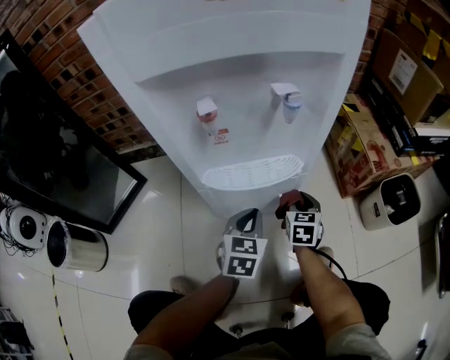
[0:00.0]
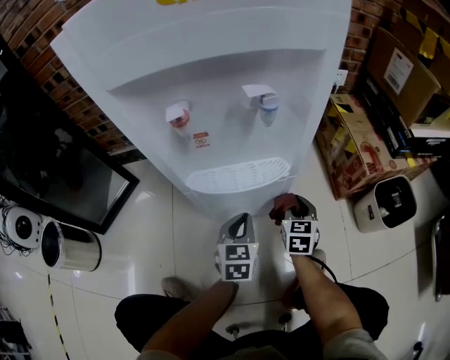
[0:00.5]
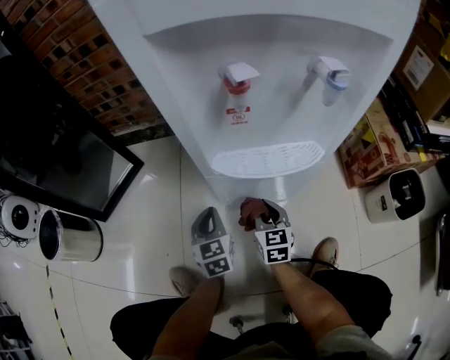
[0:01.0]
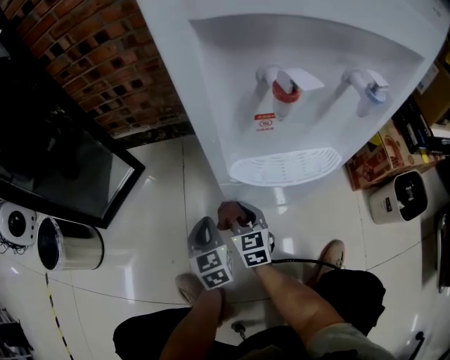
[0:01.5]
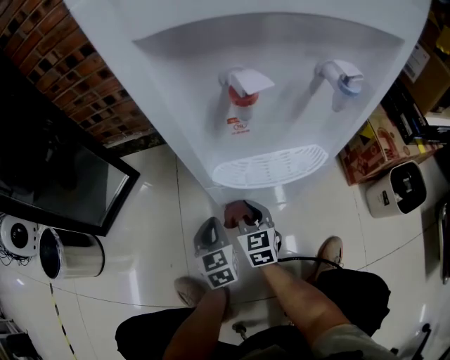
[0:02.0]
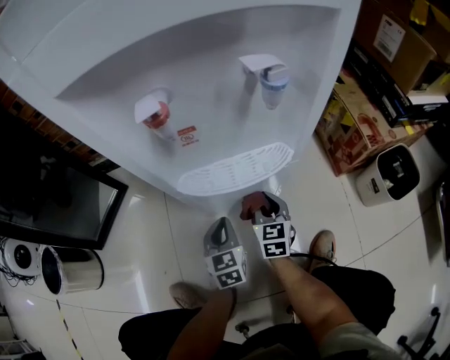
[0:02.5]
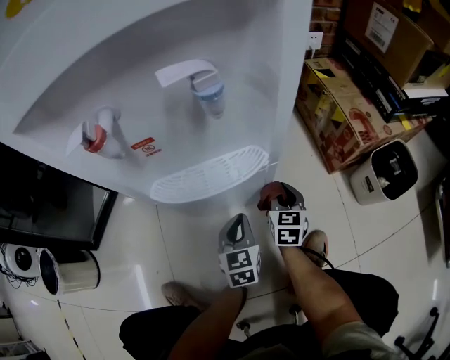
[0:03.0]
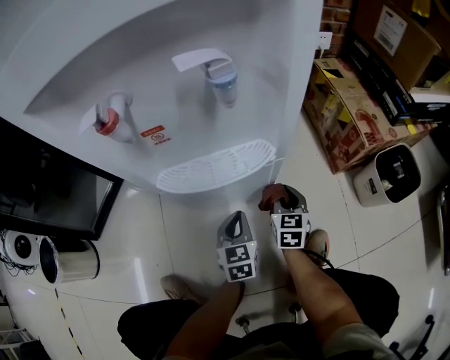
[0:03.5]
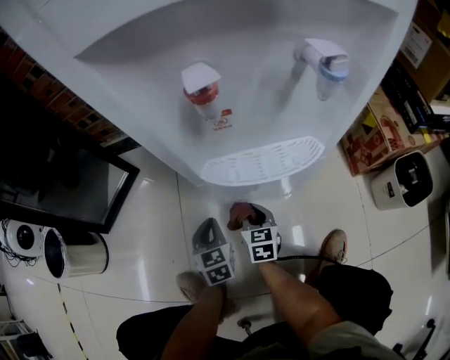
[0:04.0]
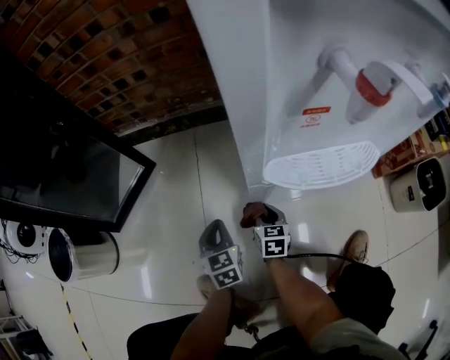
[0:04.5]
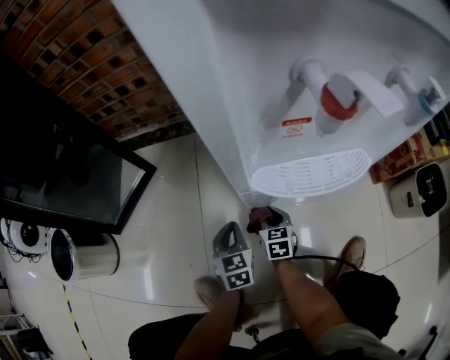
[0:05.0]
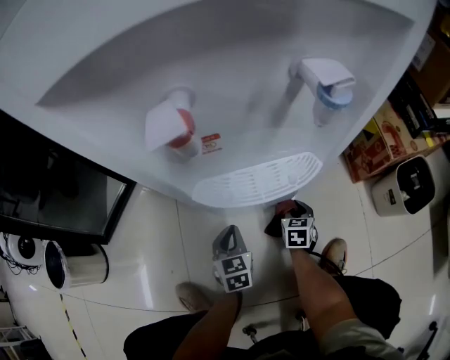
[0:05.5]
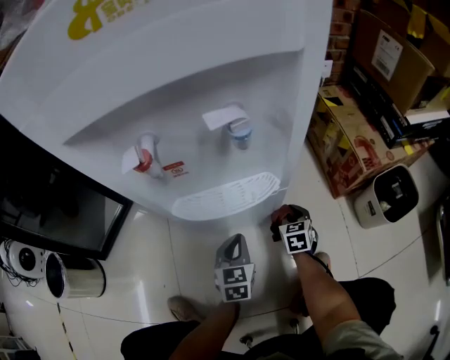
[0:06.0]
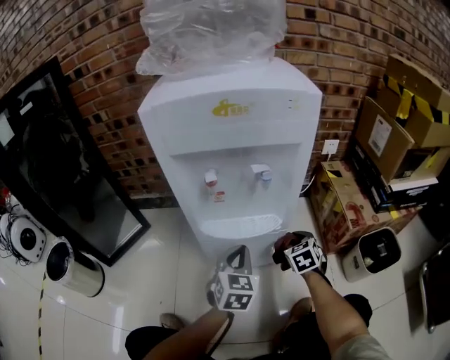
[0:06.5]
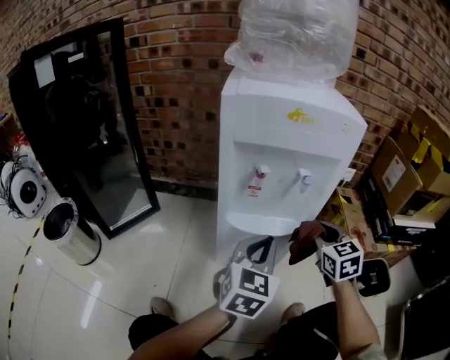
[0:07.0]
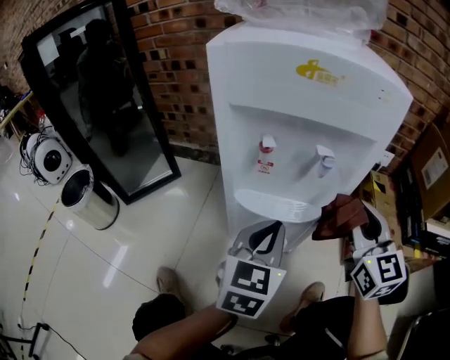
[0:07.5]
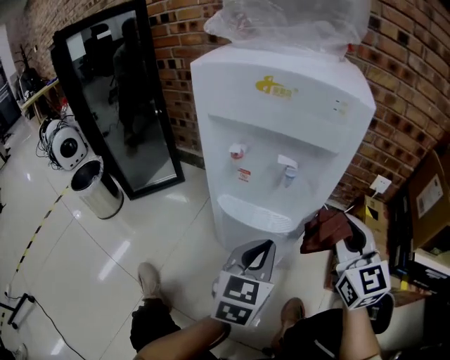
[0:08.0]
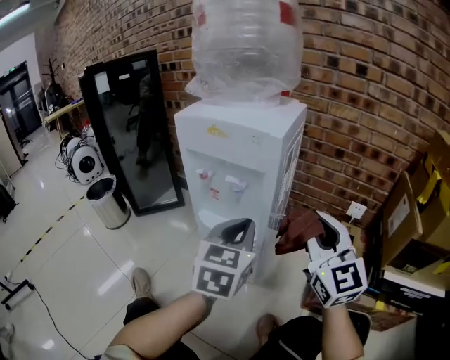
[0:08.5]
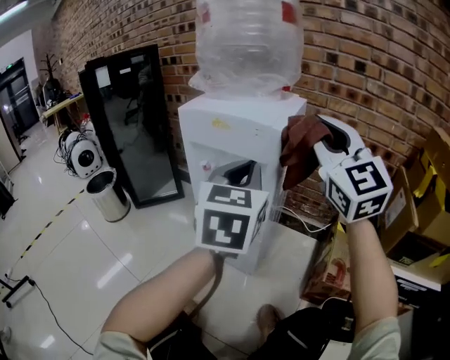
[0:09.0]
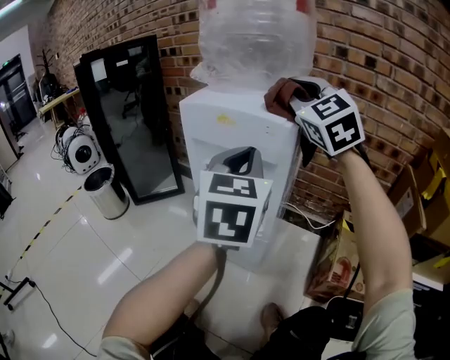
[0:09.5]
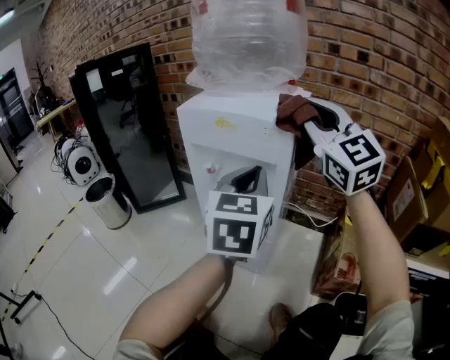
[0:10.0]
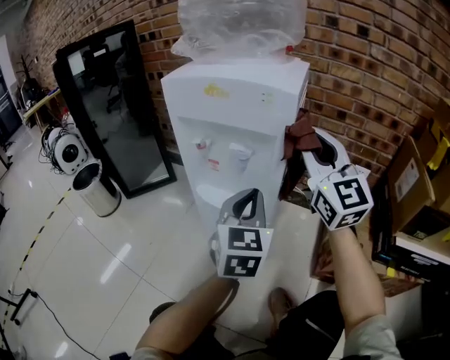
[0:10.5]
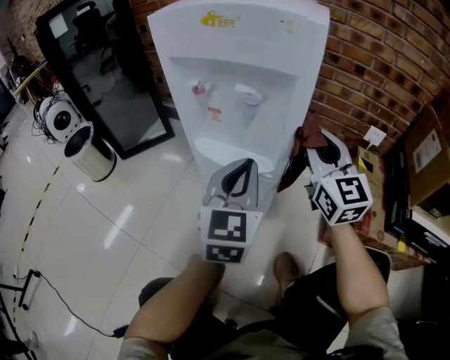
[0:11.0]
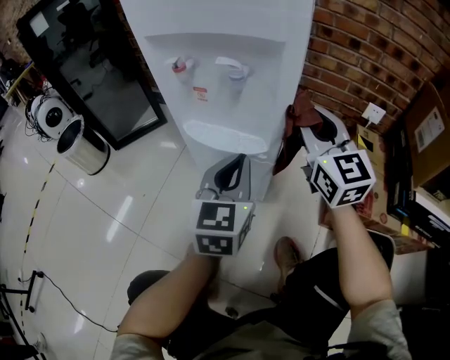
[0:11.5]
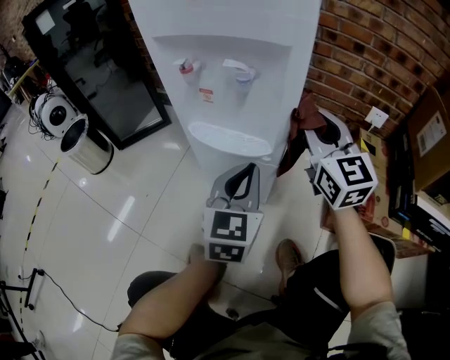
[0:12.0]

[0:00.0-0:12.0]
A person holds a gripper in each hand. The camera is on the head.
0:00.0 to 0:02.0: The left gripper moves approximately 20 cm, and changes its angle by approximately 30 degrees; the right gripper shifts by roughly 20 cm, and changes its angle by some 20 degrees.
0:02.0 to 0:04.0: The right gripper moves downward, some 5 cm, and reaches about 25 cm to the right, then returns. Meanwhile the left gripper reaches about 20 cm to the right, then returns.
0:04.0 to 0:06.0: The two grippers go about 20 cm to the right.
0:06.0 to 0:08.0: The left gripper moves upward, some 25 cm; the right gripper moves upward, some 40 cm, and tips its fingers upward by some 40 degrees.
0:08.0 to 0:10.0: Both grippers move upward, about 25 cm. The right gripper rotates about 30 degrees.
0:10.0 to 0:12.0: Both grippers travel together downward, about 25 cm. The right gripper rotates roughly 20 degrees.

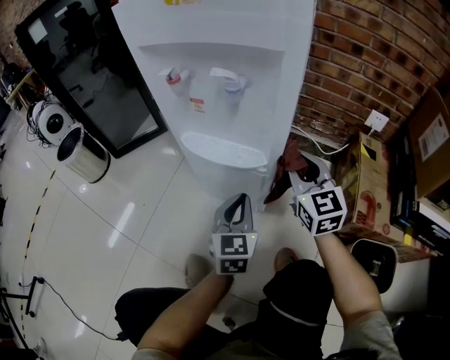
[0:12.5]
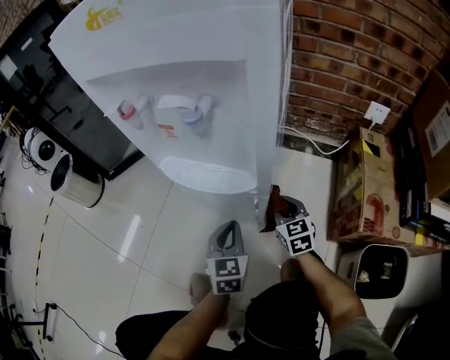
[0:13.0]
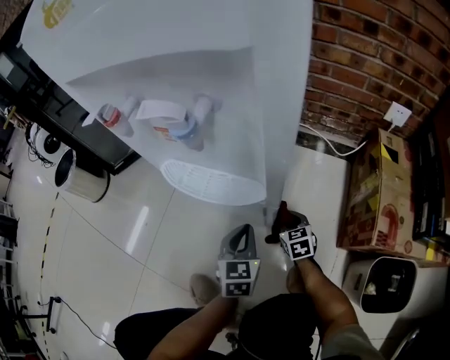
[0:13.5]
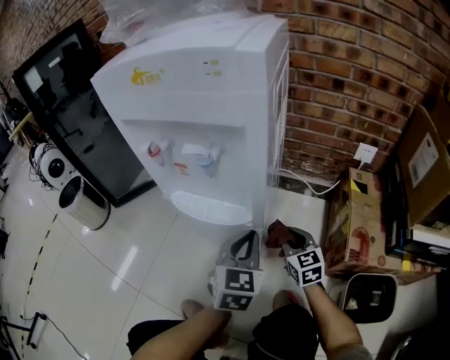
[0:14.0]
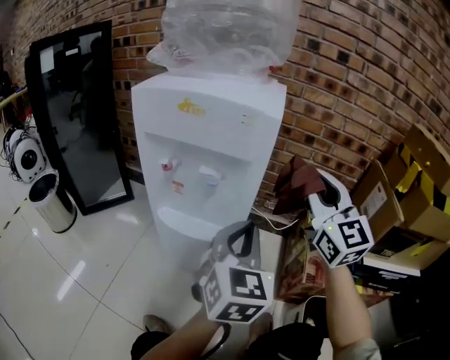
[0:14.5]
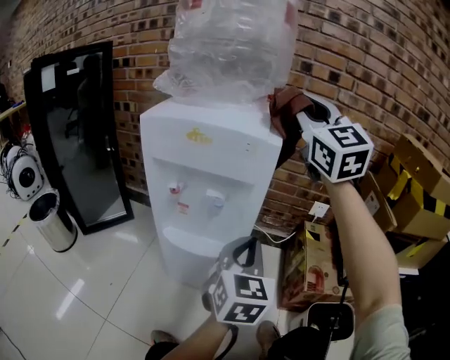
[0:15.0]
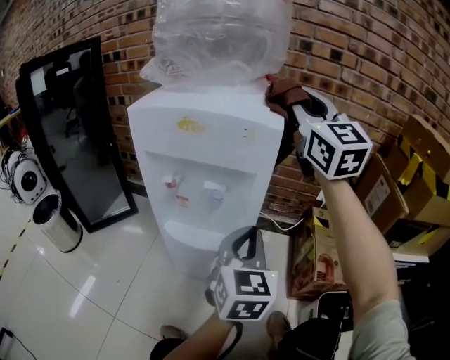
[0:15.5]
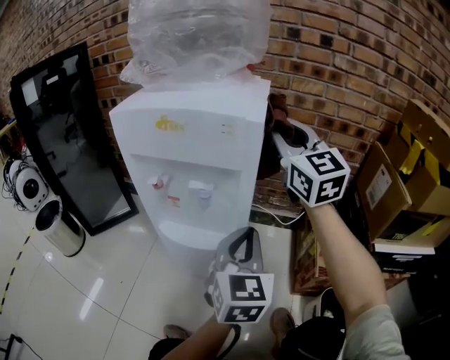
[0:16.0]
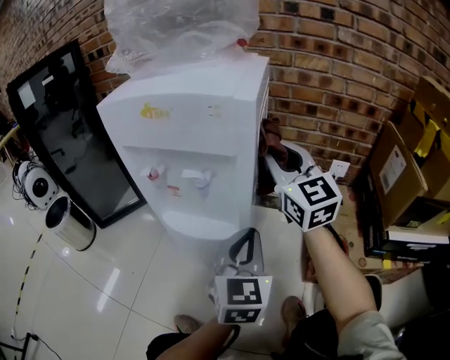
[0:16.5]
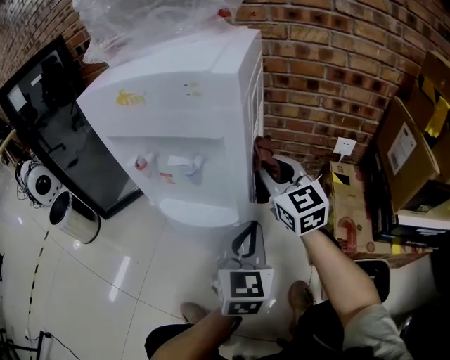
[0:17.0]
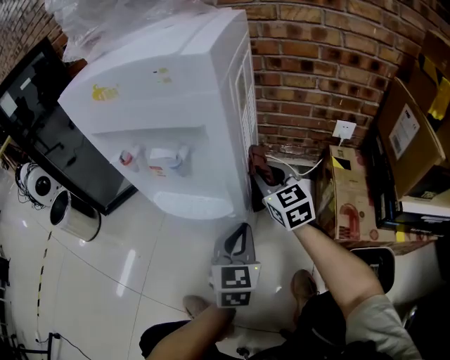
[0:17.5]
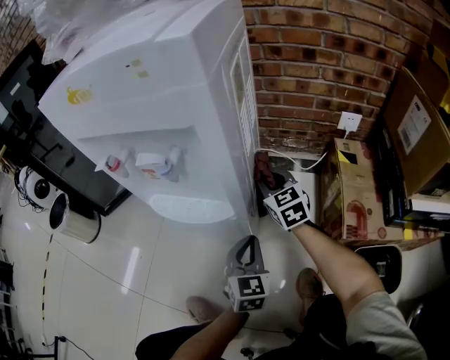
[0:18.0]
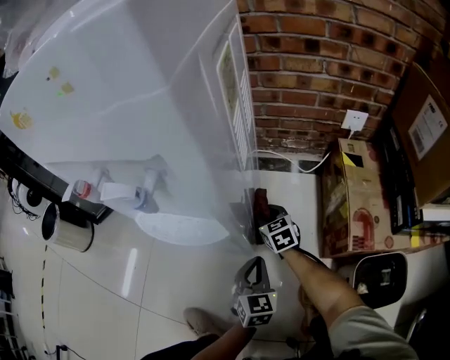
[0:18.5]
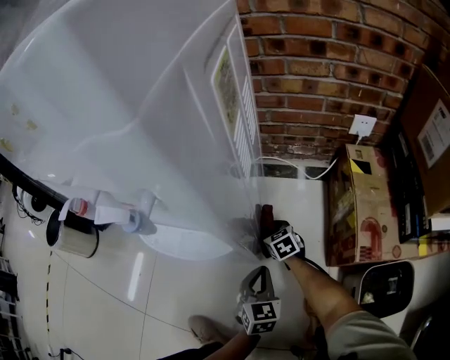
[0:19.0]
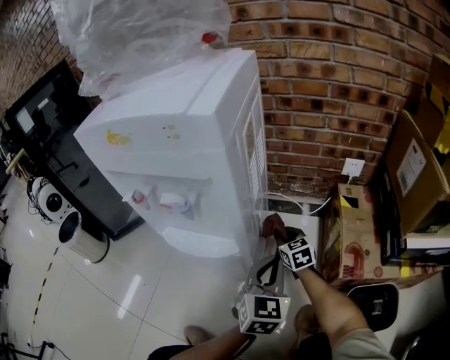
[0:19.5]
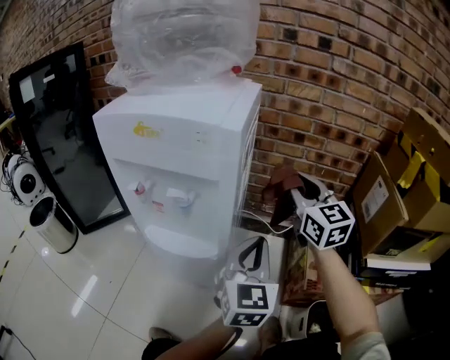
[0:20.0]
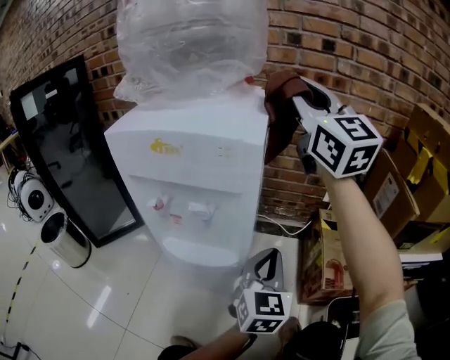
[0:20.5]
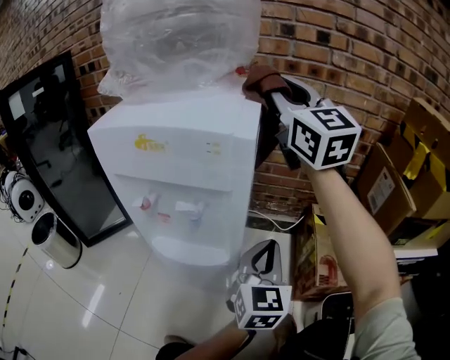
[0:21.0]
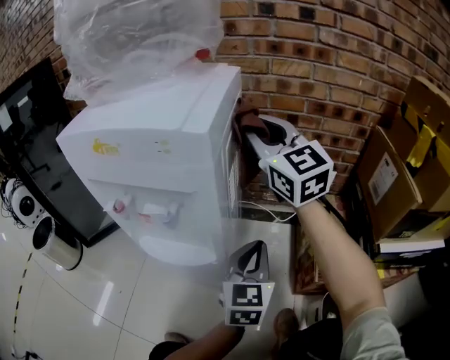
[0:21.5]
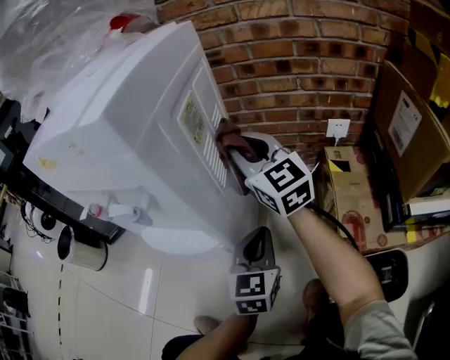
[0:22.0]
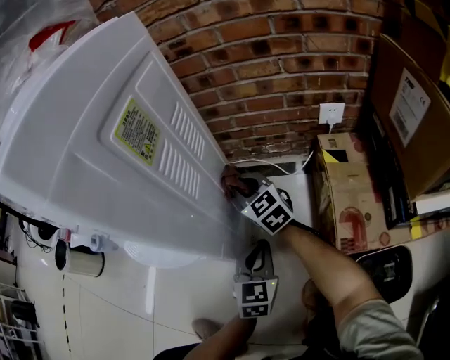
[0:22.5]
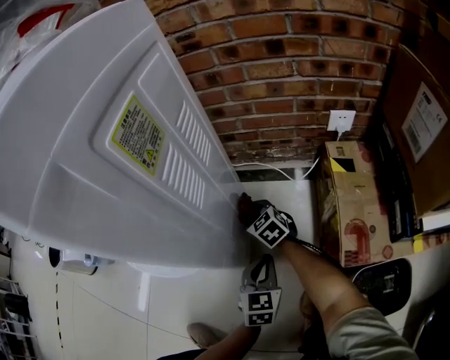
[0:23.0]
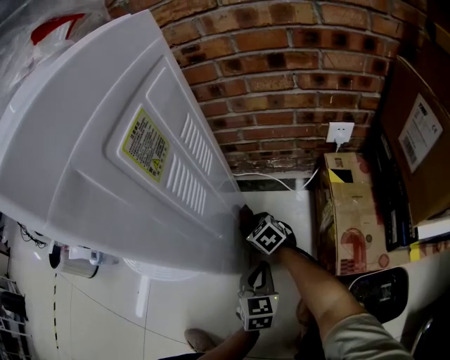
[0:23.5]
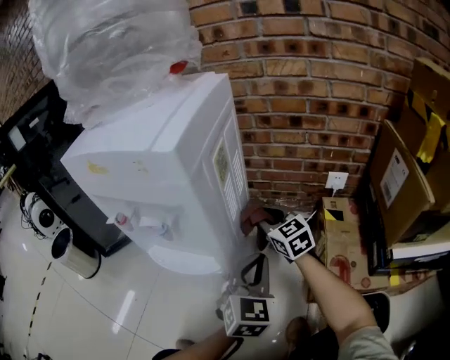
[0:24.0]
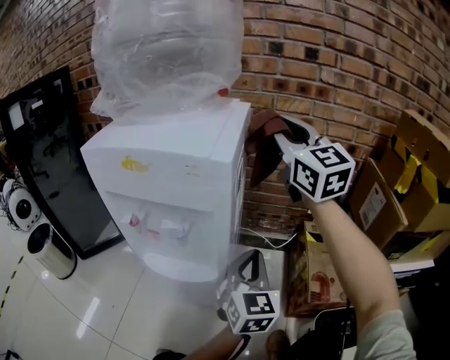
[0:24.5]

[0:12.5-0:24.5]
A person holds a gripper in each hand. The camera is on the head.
0:12.5 to 0:14.5: Both grippers move upward, approximately 25 cm. The right gripper changes its angle by roughly 20 degrees.
0:14.5 to 0:16.5: The left gripper is displaced downward by about 5 cm, while the right gripper moves forward and to the left, some 10 cm, and goes upward and returns, approximately 20 cm each way.
0:16.5 to 0:18.5: The left gripper heads downward, covering roughly 30 cm. The right gripper travels downward by some 50 cm, and tips its fingers downward by roughly 40 degrees.
0:18.5 to 0:20.5: The right gripper travels upward by roughly 70 cm, and tips its fingers upward by about 60 degrees. The left gripper moves upward, roughly 30 cm, and rotates about 20 degrees.
0:20.5 to 0:22.5: The right gripper goes approximately 50 cm downward, and angles its fingers downward, by about 40 degrees. Meanwhile the left gripper shifts approximately 25 cm downward.
0:22.5 to 0:24.5: The left gripper travels upward by approximately 25 cm. Meanwhile the right gripper is displaced upward by some 50 cm, and changes its angle by roughly 30 degrees.

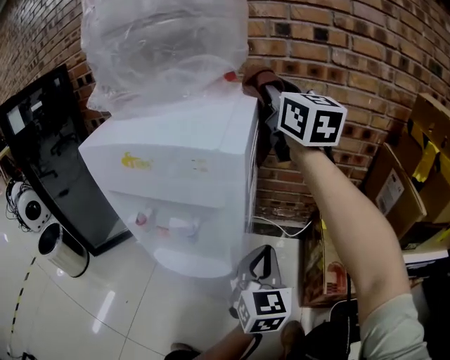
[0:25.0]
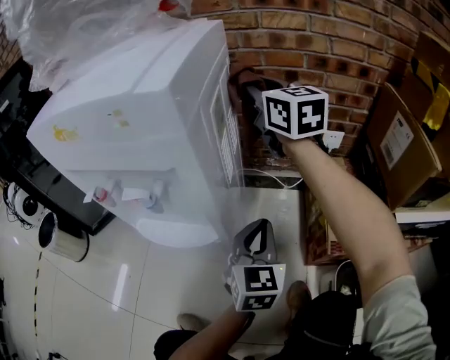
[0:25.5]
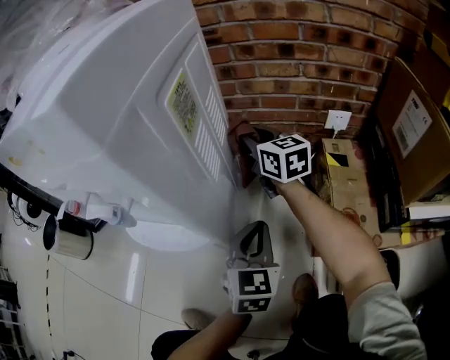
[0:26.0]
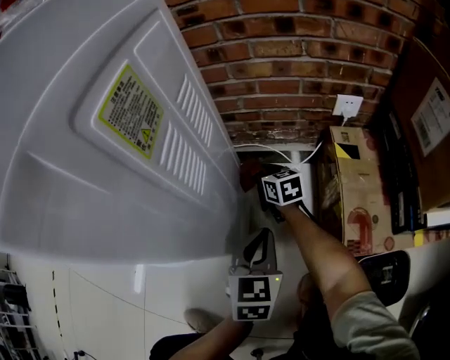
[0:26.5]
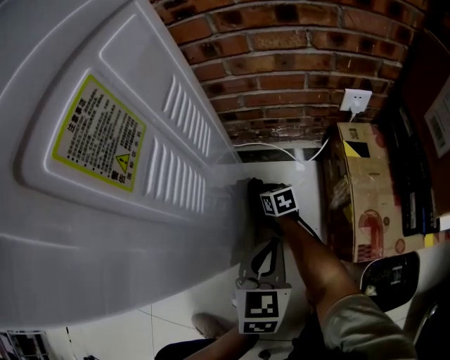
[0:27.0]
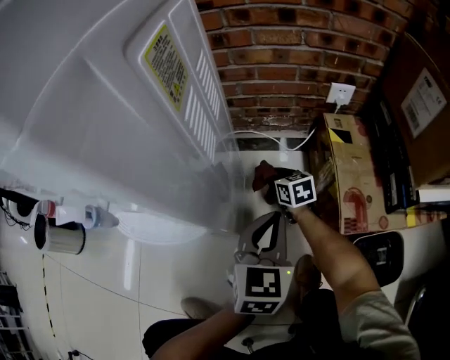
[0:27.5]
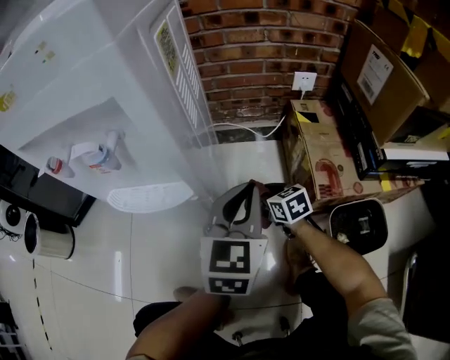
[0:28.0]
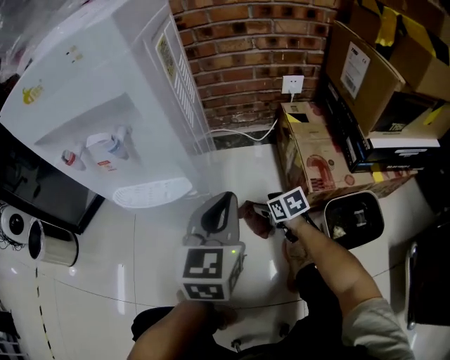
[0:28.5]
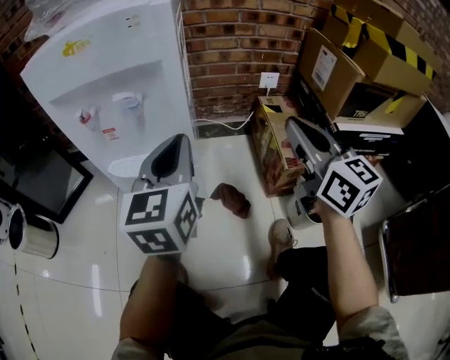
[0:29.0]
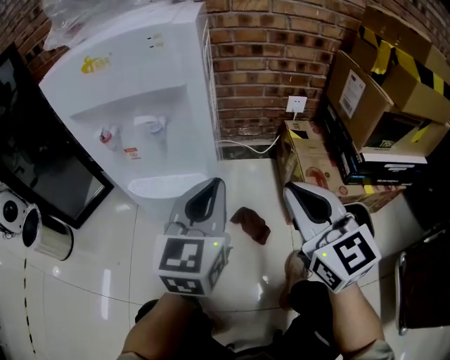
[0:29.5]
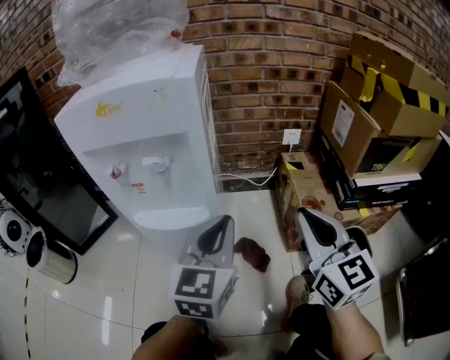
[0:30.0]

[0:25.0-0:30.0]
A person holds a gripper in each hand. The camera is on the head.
0:25.0 to 0:27.5: The right gripper moves downward, roughly 60 cm, and points its fingers about 50 degrees further downward; the left gripper travels downward by about 15 cm, and turns by approximately 20 degrees.
0:27.5 to 0:30.0: The right gripper travels upward and backward by roughly 50 cm, tips its fingers upward by some 30 degrees, and opens and closes again. Meanwhile the left gripper heads upward, backward and to the left, covering about 20 cm.
